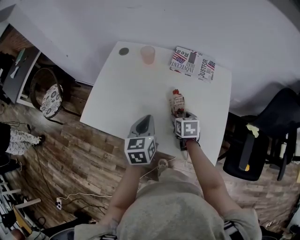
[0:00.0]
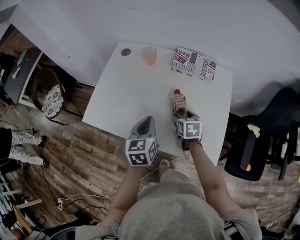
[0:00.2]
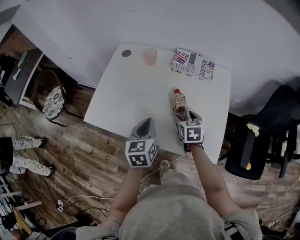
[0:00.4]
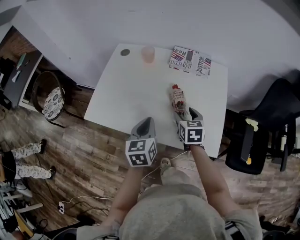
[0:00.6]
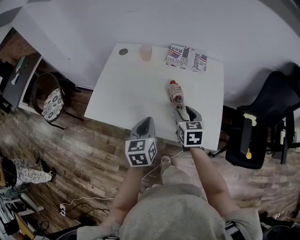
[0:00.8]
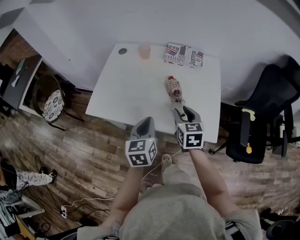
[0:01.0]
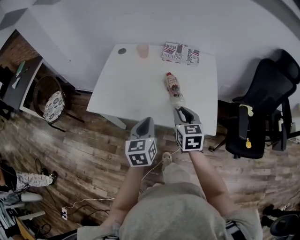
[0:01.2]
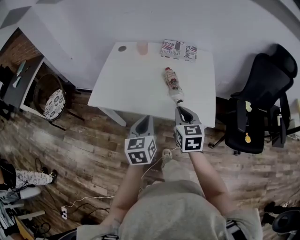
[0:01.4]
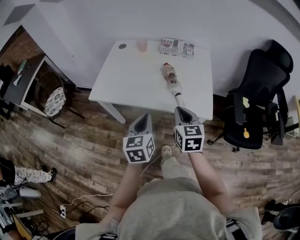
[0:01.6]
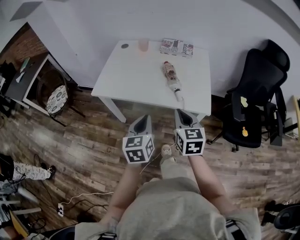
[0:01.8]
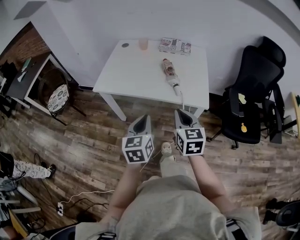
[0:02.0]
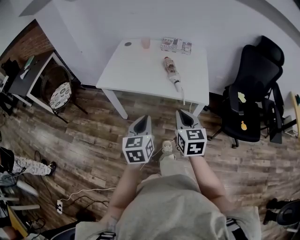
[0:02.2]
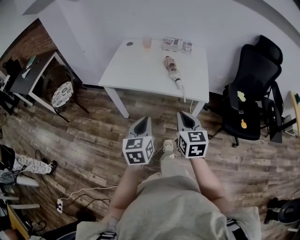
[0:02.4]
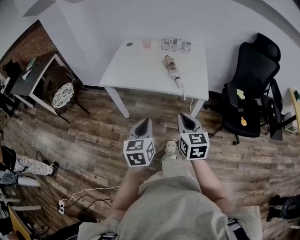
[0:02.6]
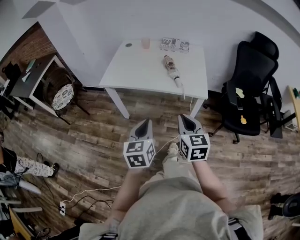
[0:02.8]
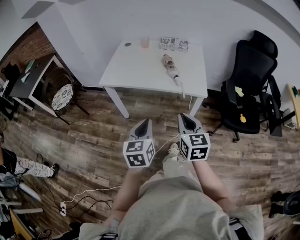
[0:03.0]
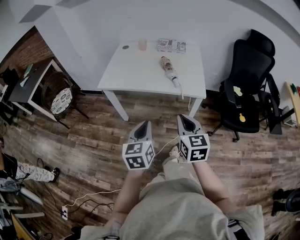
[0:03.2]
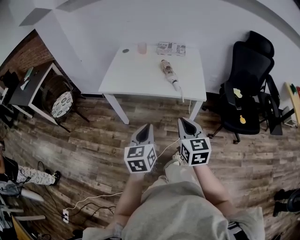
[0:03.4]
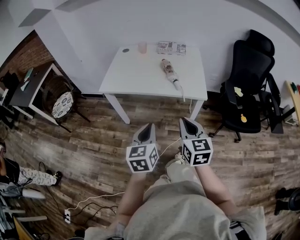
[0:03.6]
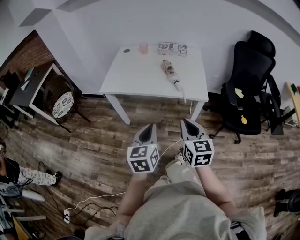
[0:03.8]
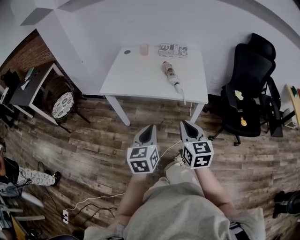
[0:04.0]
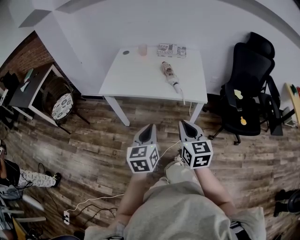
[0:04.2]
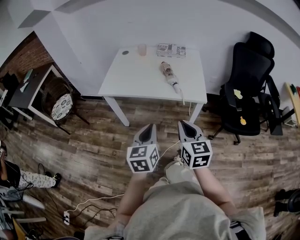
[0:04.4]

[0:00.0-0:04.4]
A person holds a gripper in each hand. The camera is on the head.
0:00.0 to 0:01.4: The right gripper moves backward and upward, about 25 cm, rotates some 30 degrees, and closes up; the left gripper shifts roughly 20 cm backward.
0:01.4 to 0:03.0: The two grippers go roughly 25 cm backward.
0:03.0 to 0:04.4: The grippers stay close to where they were, moving slightly.

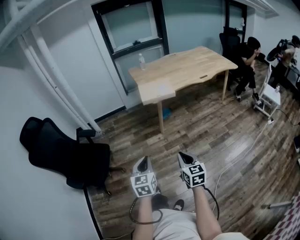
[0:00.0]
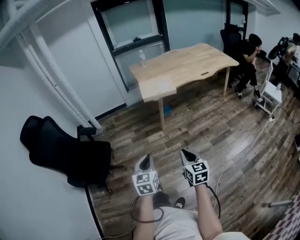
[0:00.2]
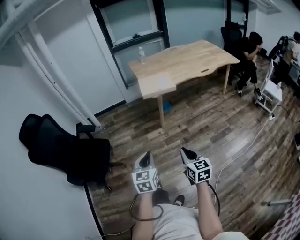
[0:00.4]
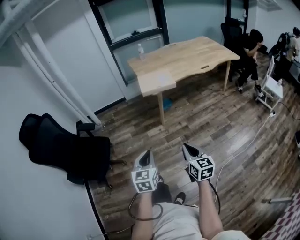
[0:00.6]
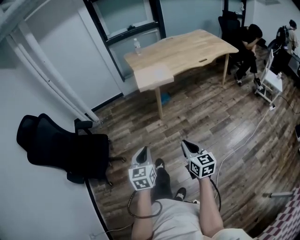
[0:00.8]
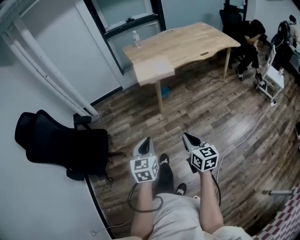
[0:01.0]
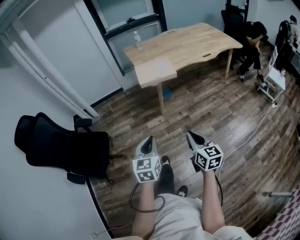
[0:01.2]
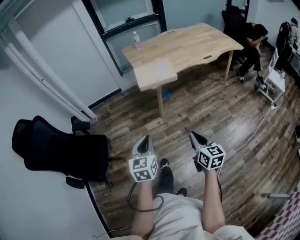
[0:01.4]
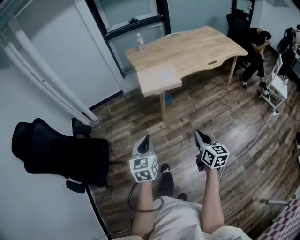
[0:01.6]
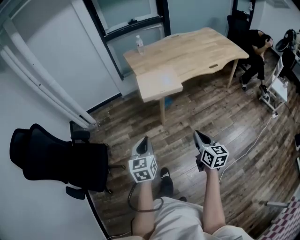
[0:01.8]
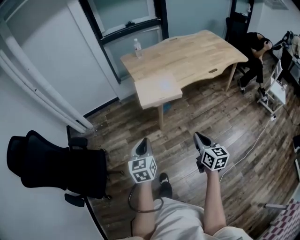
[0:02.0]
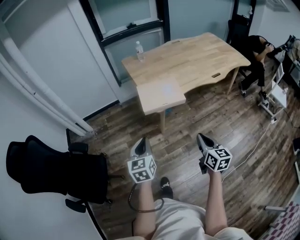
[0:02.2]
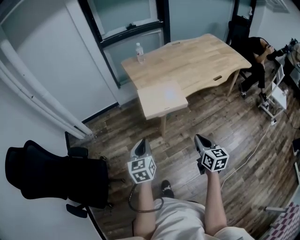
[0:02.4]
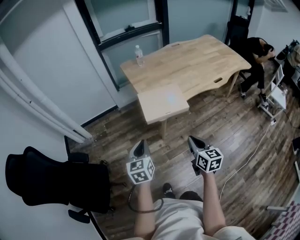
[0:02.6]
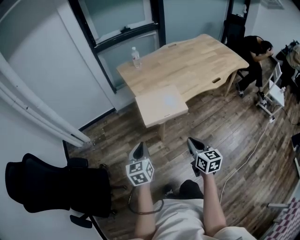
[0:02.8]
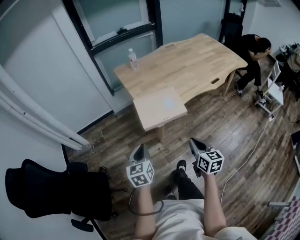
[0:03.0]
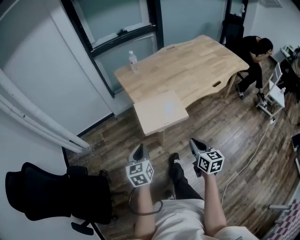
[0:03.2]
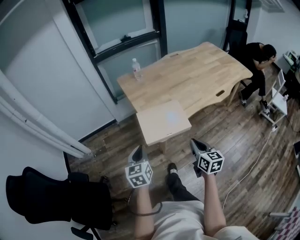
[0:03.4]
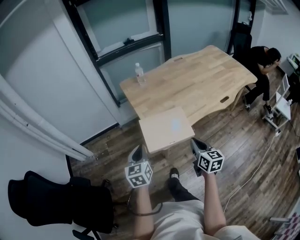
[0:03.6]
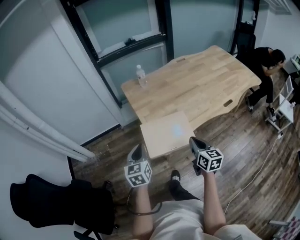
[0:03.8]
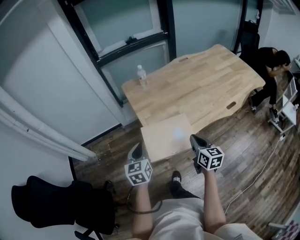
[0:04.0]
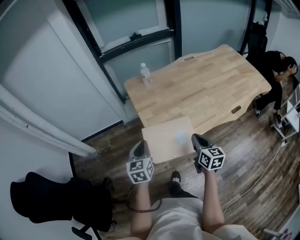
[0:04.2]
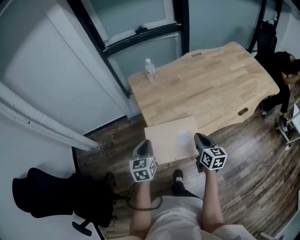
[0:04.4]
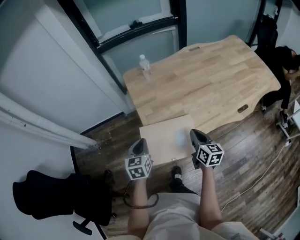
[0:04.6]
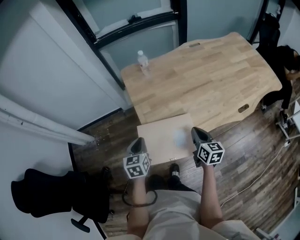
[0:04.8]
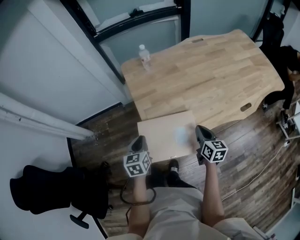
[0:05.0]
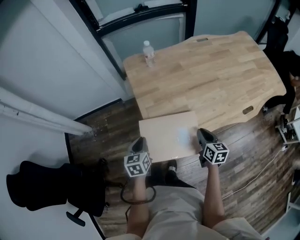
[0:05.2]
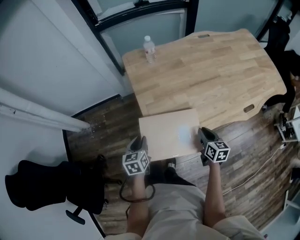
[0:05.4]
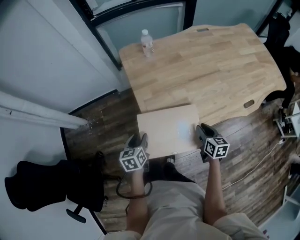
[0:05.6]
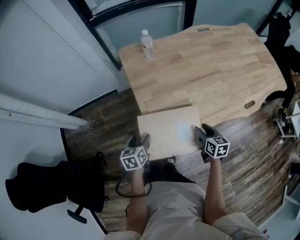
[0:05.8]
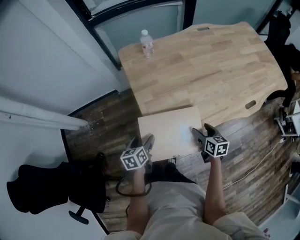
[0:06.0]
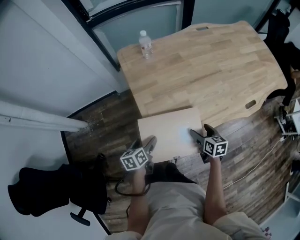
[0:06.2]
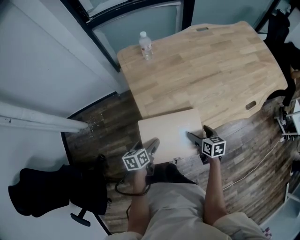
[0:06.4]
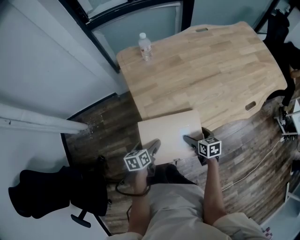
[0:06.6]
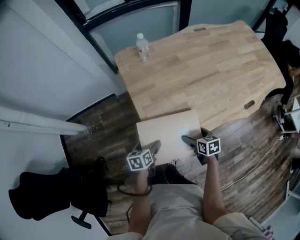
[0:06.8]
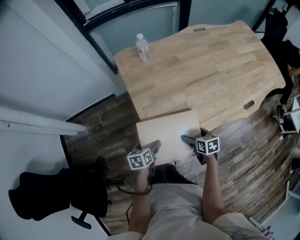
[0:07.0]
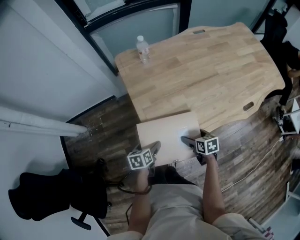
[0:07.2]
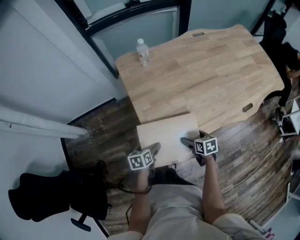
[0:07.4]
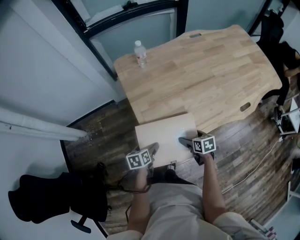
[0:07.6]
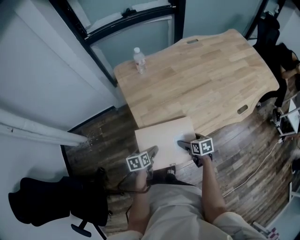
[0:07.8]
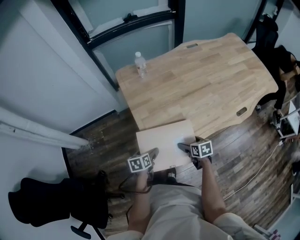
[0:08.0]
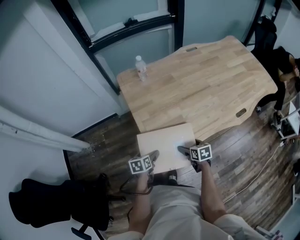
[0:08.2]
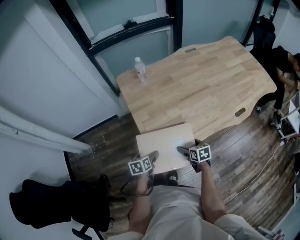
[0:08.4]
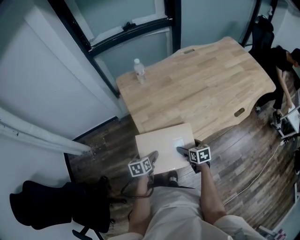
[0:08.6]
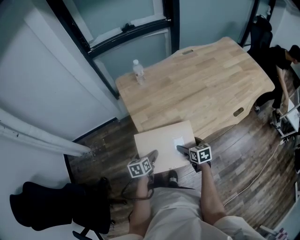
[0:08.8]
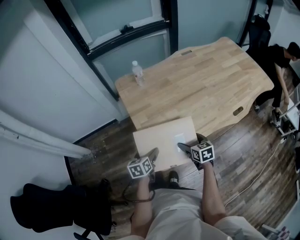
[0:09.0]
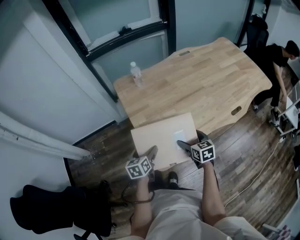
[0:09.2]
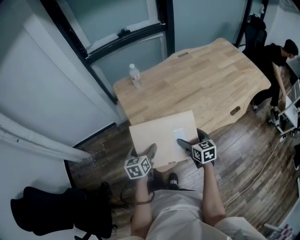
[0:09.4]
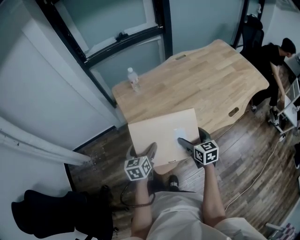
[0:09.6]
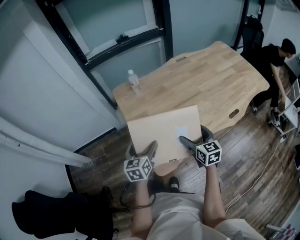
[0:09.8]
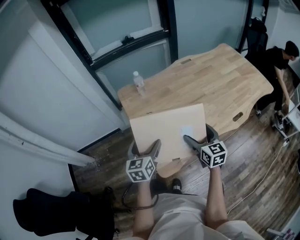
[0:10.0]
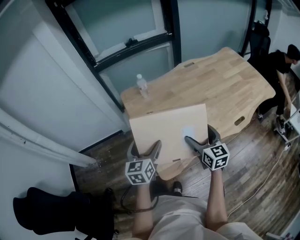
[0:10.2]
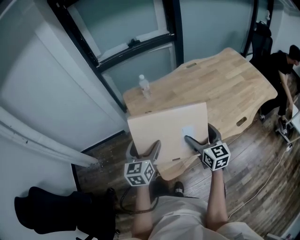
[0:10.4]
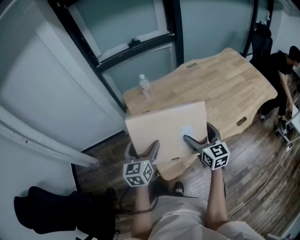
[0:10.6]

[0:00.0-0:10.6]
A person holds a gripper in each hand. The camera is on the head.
0:00.0 to 0:01.6: The right gripper heads forward and to the right, covering about 20 cm; the left gripper moves forward, roughly 20 cm.
0:01.6 to 0:03.0: The two grippers go some 25 cm forward.
0:03.0 to 0:04.6: The two grippers go roughly 35 cm forward.
0:04.6 to 0:06.0: The two grippers go about 15 cm downward. The left gripper rotates roughly 30 degrees, and opens its fingers, while the right gripper opens up.
0:06.0 to 0:07.6: The right gripper shifts by some 5 cm, while the left gripper changes place by roughly 5 cm.
0:07.6 to 0:09.0: The grippers both shift upward by roughly 10 cm.
0:09.0 to 0:10.6: The grippers both shift upward by approximately 20 cm. The right gripper changes its angle by some 30 degrees; the left gripper changes its angle by about 30 degrees.

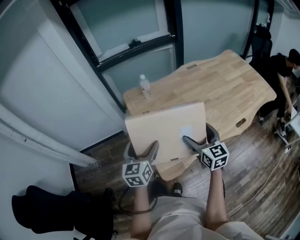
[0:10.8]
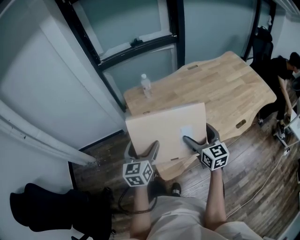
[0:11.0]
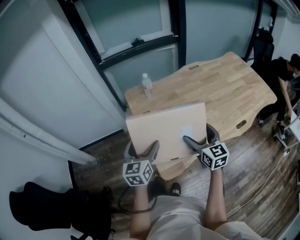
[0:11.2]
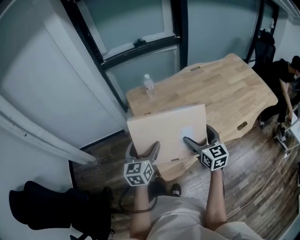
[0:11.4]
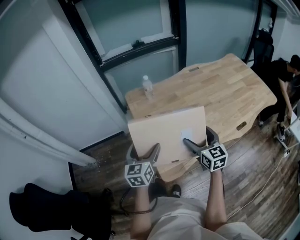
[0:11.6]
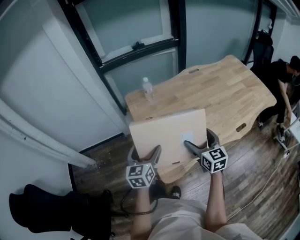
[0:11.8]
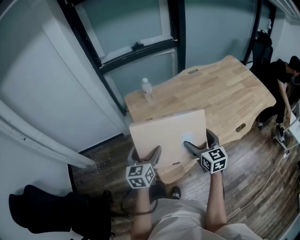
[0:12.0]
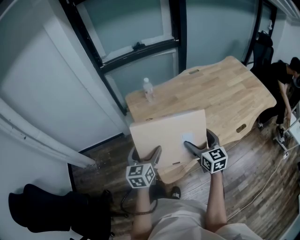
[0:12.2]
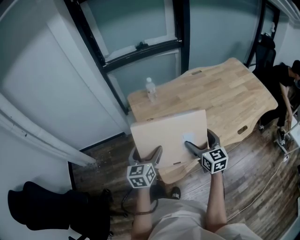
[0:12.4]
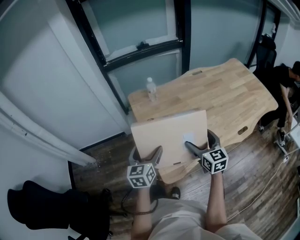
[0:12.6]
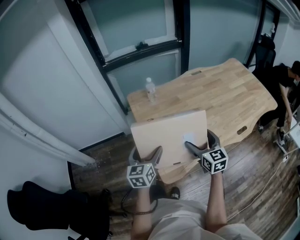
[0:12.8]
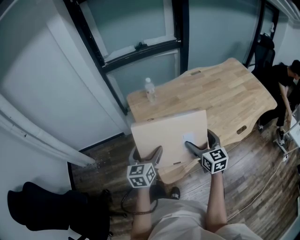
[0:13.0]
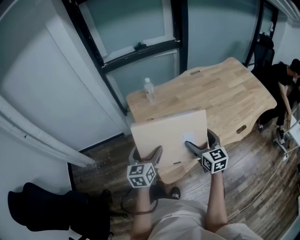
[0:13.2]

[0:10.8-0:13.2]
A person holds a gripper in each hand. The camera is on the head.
0:10.8 to 0:12.0: There are only small adjustments of the grippers.
0:12.0 to 0:13.2: Neither gripper changes place.

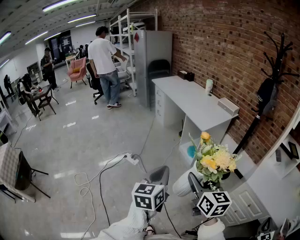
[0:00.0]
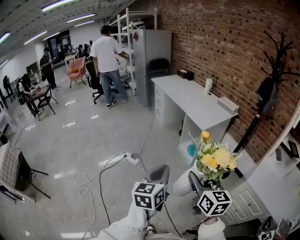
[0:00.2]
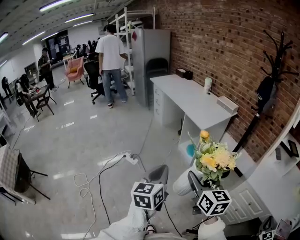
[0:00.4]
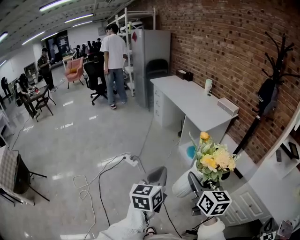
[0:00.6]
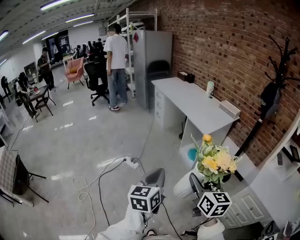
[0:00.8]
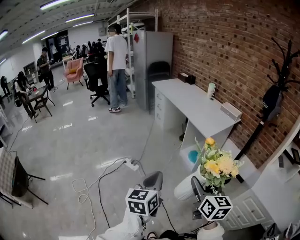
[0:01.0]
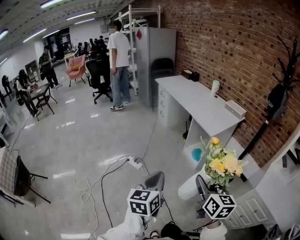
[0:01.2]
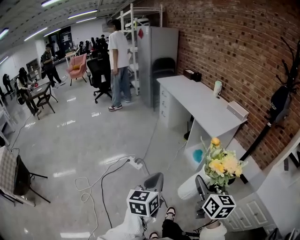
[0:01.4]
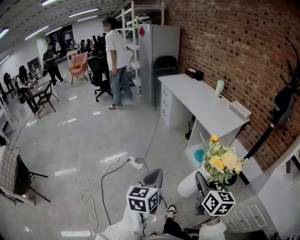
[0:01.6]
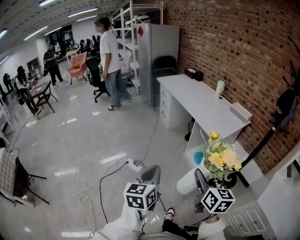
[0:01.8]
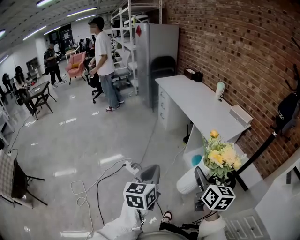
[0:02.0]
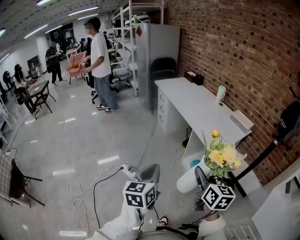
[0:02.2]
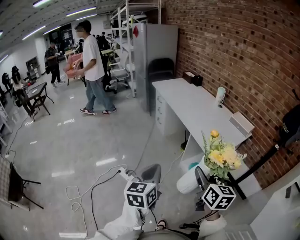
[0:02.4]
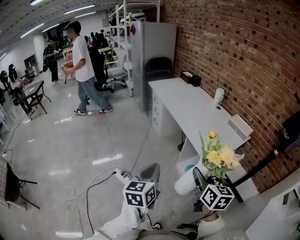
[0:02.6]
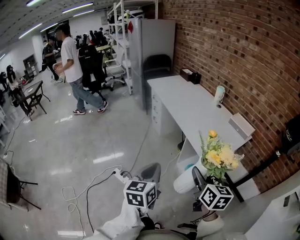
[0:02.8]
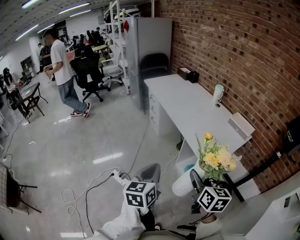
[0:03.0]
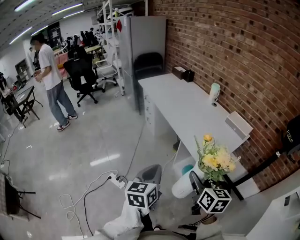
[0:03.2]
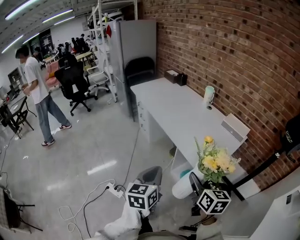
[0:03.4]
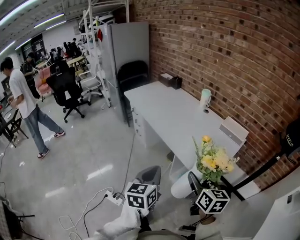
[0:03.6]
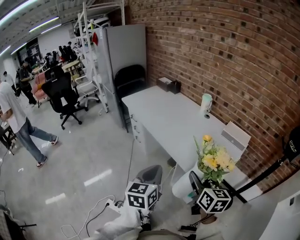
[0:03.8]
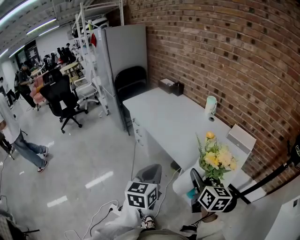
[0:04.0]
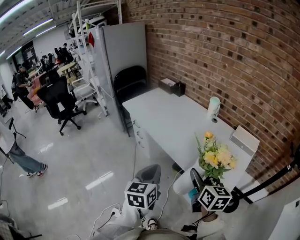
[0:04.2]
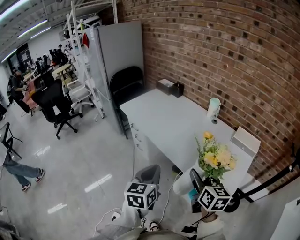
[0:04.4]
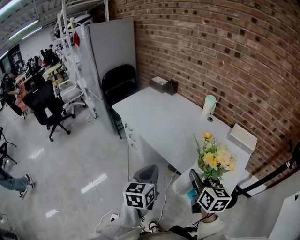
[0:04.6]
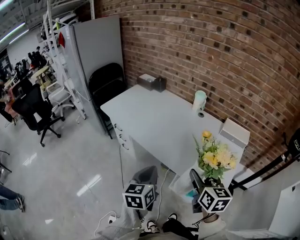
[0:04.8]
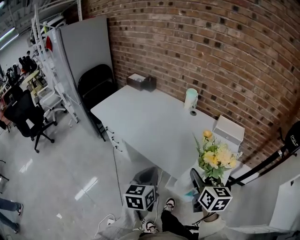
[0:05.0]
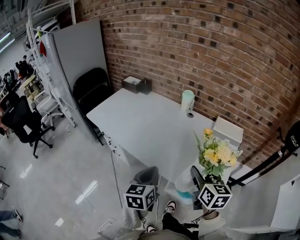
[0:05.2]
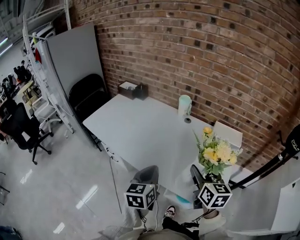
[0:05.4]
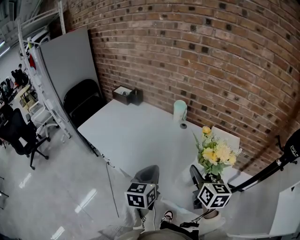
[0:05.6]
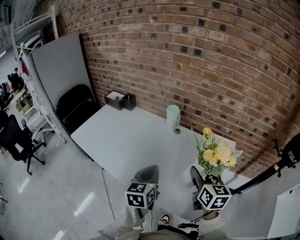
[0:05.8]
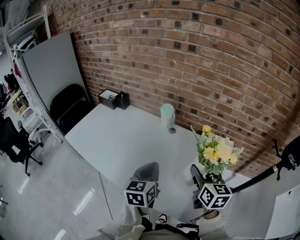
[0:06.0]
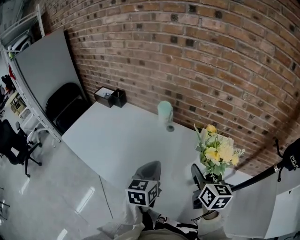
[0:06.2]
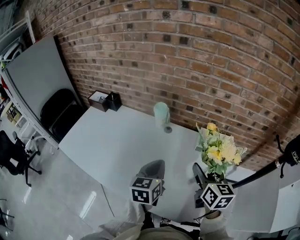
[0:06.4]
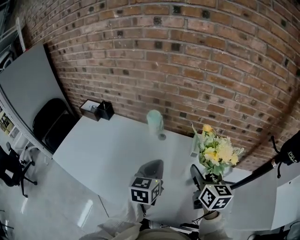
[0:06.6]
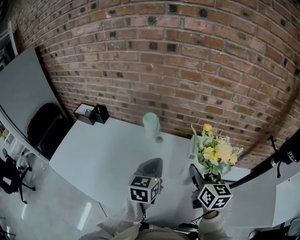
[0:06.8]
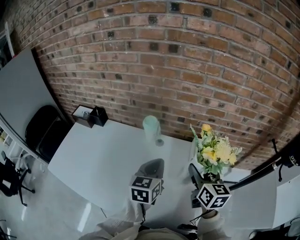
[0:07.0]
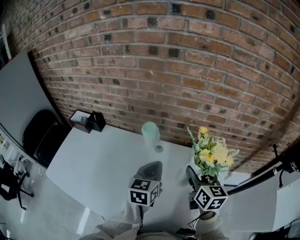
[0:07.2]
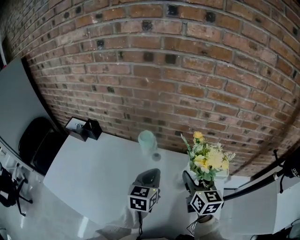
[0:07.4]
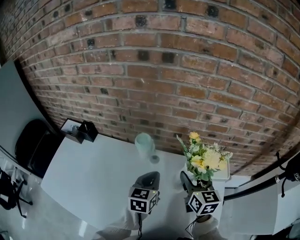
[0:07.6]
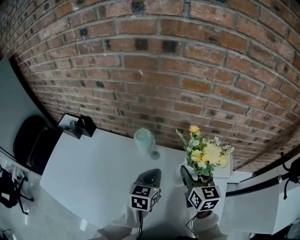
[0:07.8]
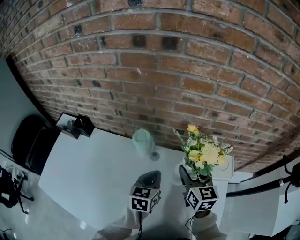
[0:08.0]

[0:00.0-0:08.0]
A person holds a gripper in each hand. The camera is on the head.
0:00.0 to 0:01.6: The right gripper travels forward by roughly 10 cm; the left gripper is displaced to the left and forward by about 15 cm.
0:01.6 to 0:03.2: The two grippers go some 35 cm forward.
0:03.2 to 0:04.8: Both grippers travel together forward, approximately 30 cm. The right gripper swivels approximately 20 degrees.
0:04.8 to 0:06.4: Both grippers move forward and to the right, roughly 30 cm. The left gripper swivels roughly 20 degrees.
0:06.4 to 0:08.0: The left gripper travels forward and downward by roughly 20 cm. The right gripper moves forward, approximately 20 cm.
